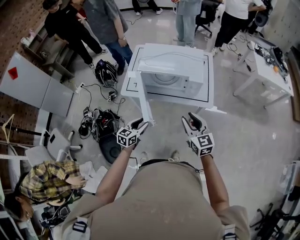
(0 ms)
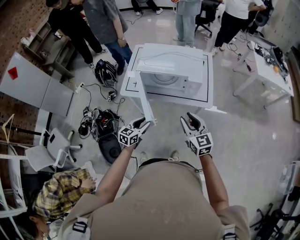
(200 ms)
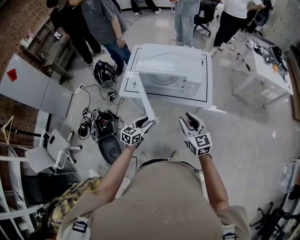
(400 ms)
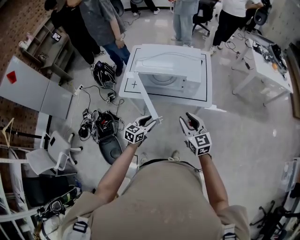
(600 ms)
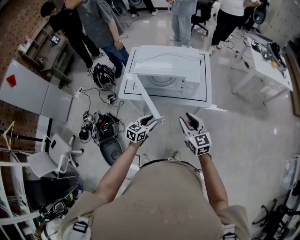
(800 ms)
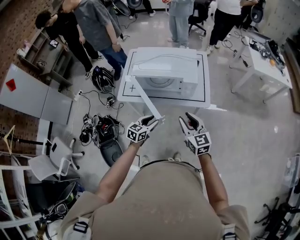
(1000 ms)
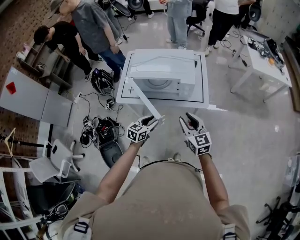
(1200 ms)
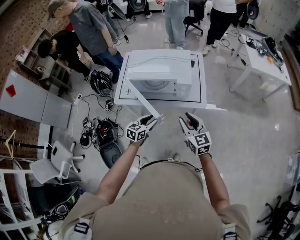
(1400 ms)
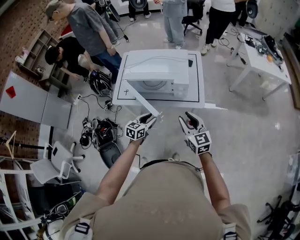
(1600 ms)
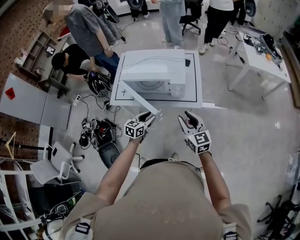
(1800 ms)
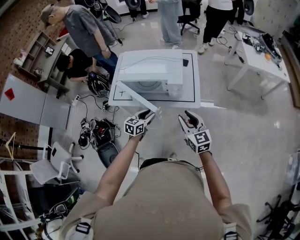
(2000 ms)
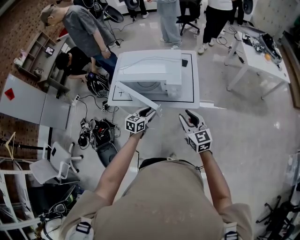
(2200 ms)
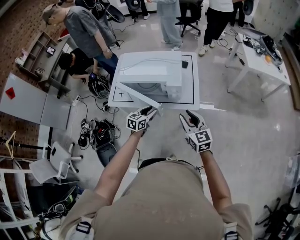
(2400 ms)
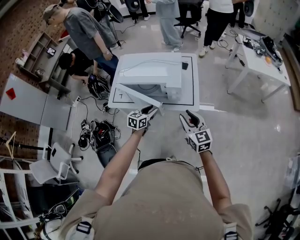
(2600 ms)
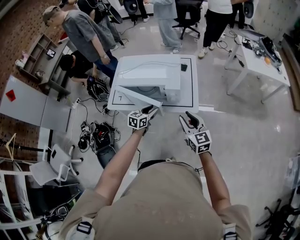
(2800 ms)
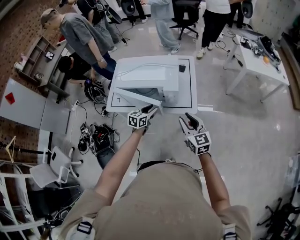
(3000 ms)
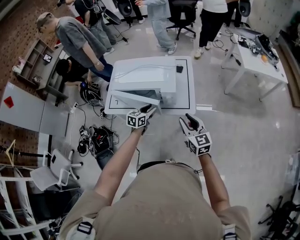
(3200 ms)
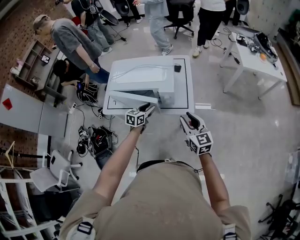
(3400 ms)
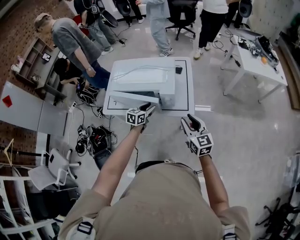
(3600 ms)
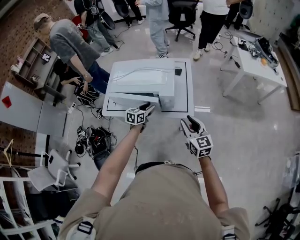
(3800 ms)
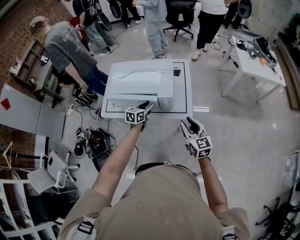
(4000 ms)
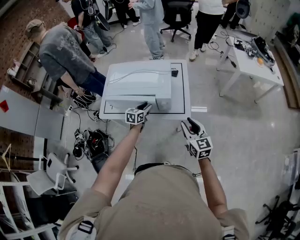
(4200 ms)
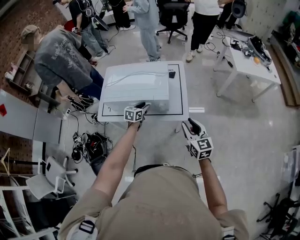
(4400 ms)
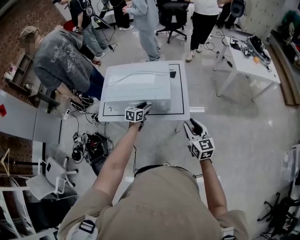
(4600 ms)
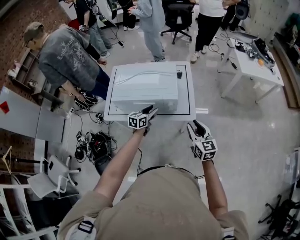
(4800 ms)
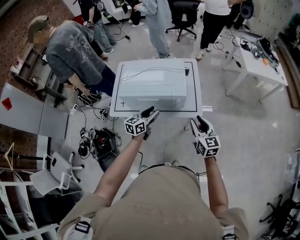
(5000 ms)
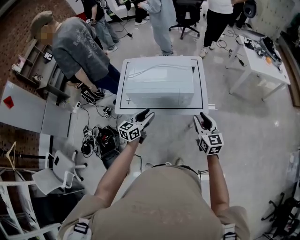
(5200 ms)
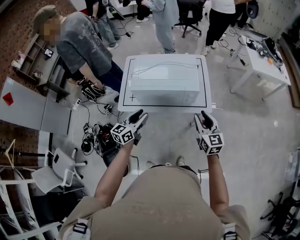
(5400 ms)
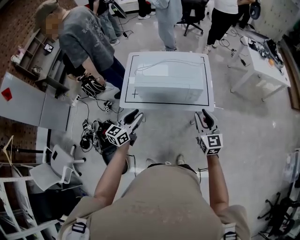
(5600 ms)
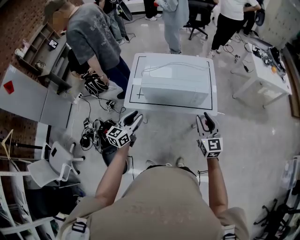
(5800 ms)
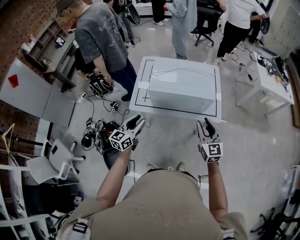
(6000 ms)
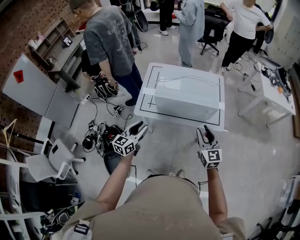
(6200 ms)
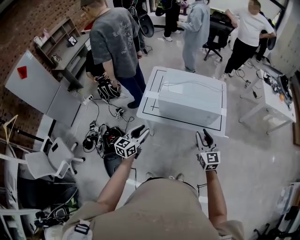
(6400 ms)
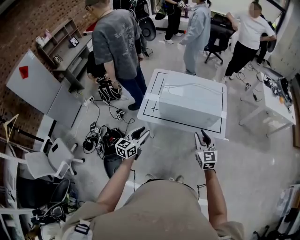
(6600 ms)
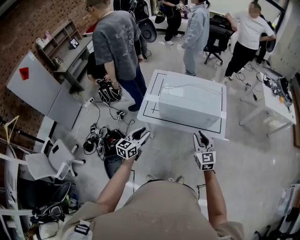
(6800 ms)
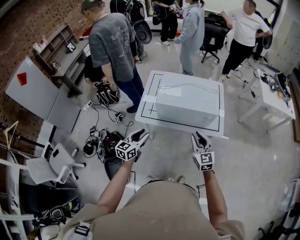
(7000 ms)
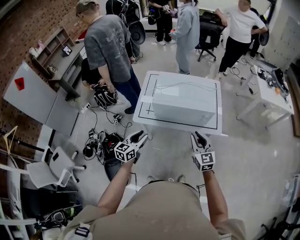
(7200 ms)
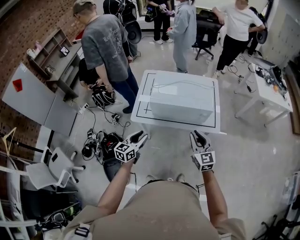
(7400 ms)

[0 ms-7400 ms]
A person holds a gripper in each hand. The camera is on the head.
0 ms to 1400 ms: The left gripper moves to the right and forward, roughly 10 cm.
1400 ms to 3000 ms: The left gripper is displaced forward and to the right by some 15 cm; the right gripper goes about 10 cm to the right and forward.
3000 ms to 4400 ms: The right gripper heads to the right, covering some 5 cm, while the left gripper shifts roughly 10 cm forward.
4400 ms to 6000 ms: The left gripper goes some 40 cm to the left, backward and upward, and changes its angle by roughly 30 degrees, while the right gripper heads to the left, covering roughly 20 cm.

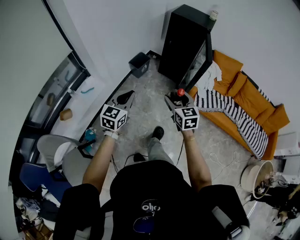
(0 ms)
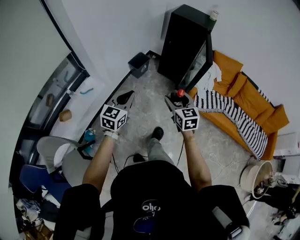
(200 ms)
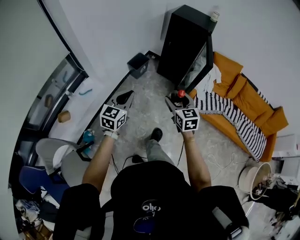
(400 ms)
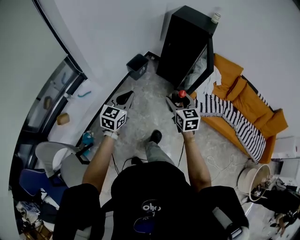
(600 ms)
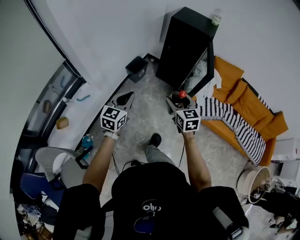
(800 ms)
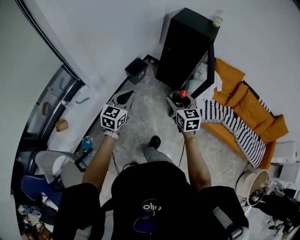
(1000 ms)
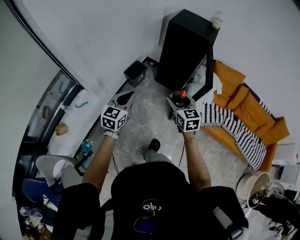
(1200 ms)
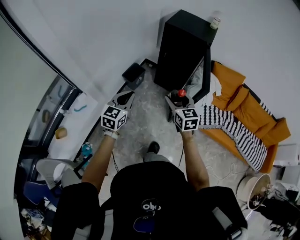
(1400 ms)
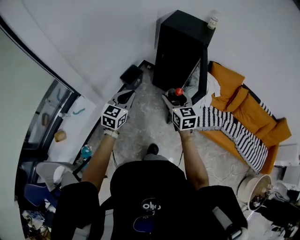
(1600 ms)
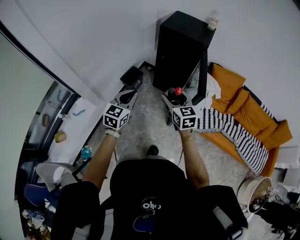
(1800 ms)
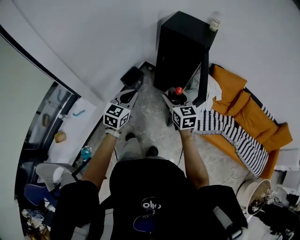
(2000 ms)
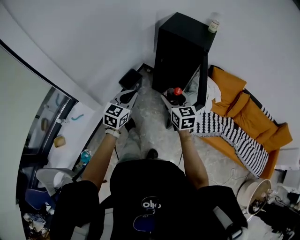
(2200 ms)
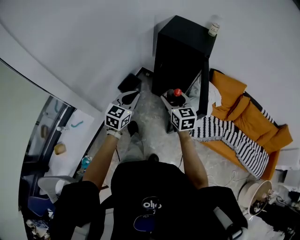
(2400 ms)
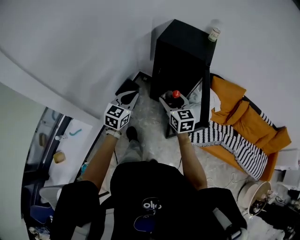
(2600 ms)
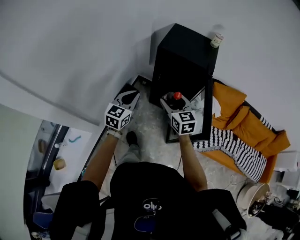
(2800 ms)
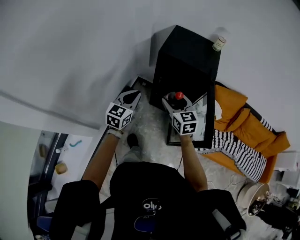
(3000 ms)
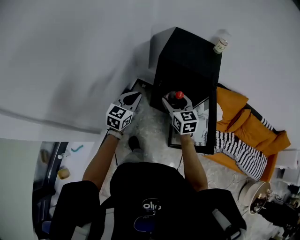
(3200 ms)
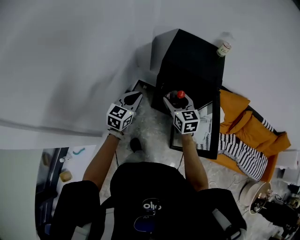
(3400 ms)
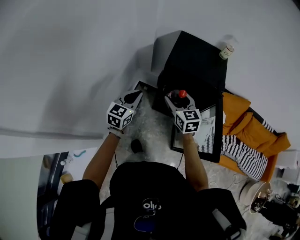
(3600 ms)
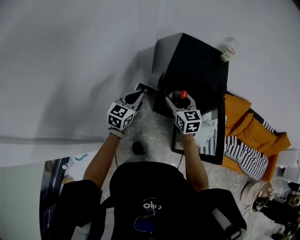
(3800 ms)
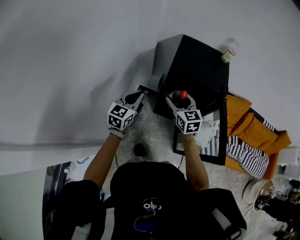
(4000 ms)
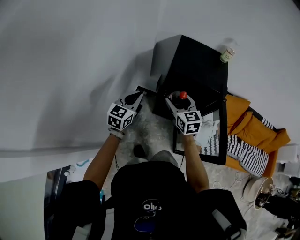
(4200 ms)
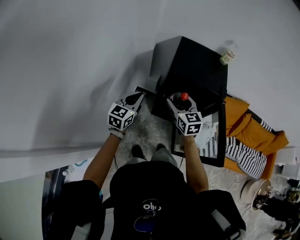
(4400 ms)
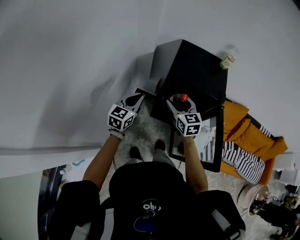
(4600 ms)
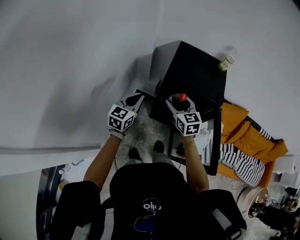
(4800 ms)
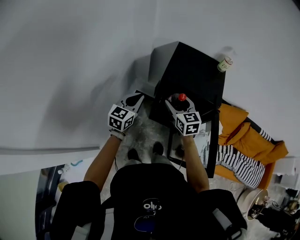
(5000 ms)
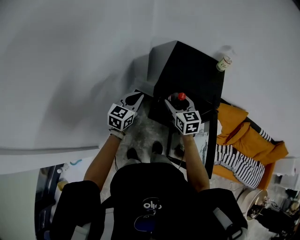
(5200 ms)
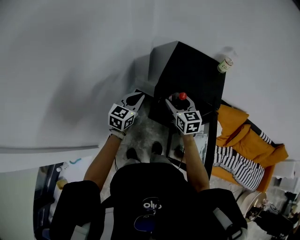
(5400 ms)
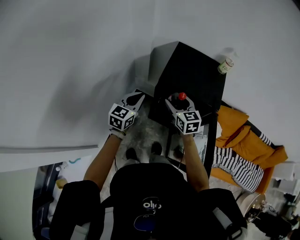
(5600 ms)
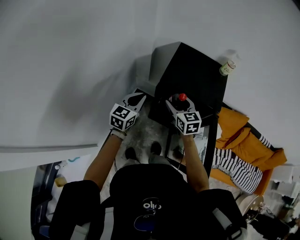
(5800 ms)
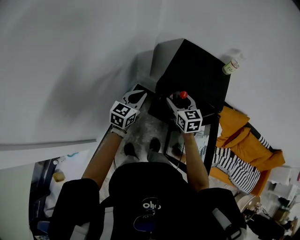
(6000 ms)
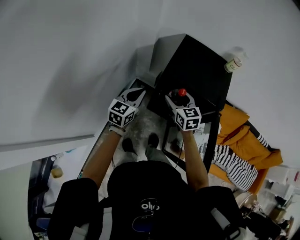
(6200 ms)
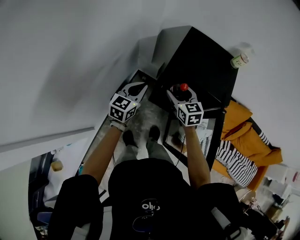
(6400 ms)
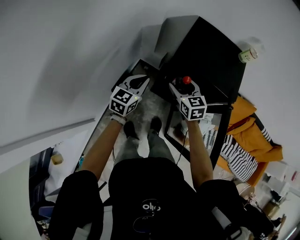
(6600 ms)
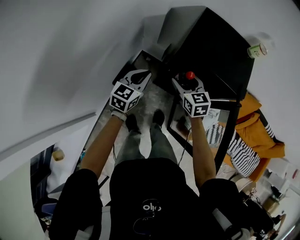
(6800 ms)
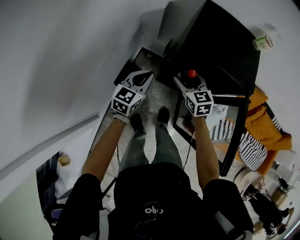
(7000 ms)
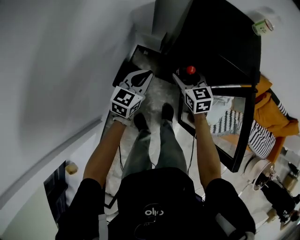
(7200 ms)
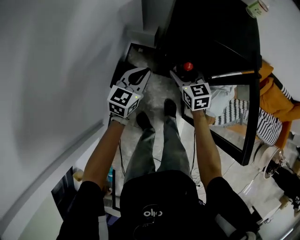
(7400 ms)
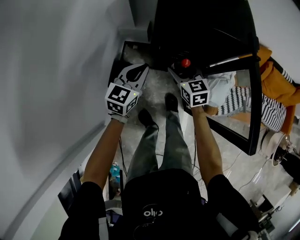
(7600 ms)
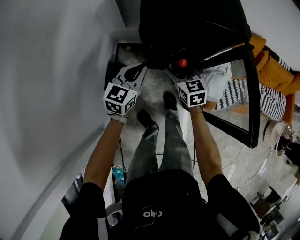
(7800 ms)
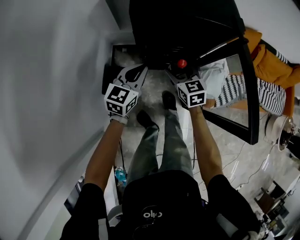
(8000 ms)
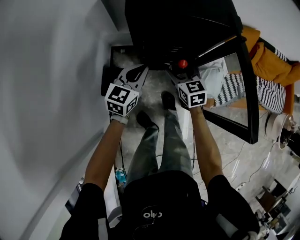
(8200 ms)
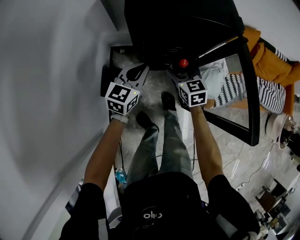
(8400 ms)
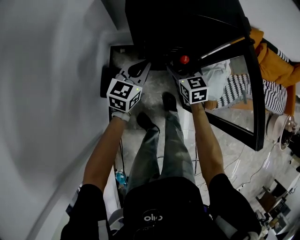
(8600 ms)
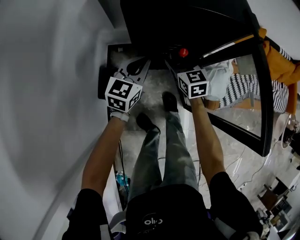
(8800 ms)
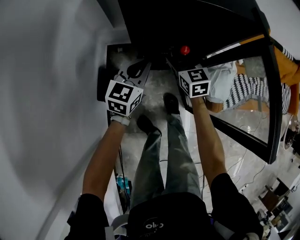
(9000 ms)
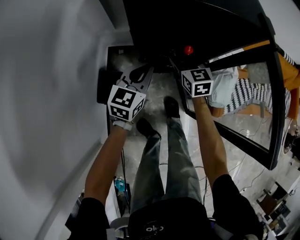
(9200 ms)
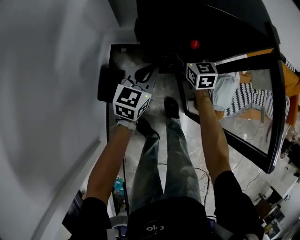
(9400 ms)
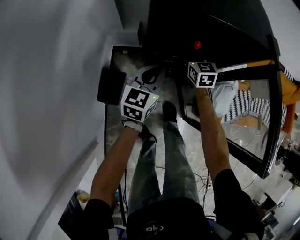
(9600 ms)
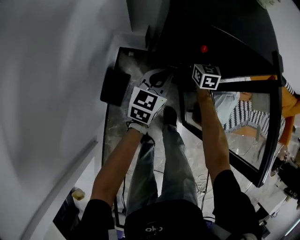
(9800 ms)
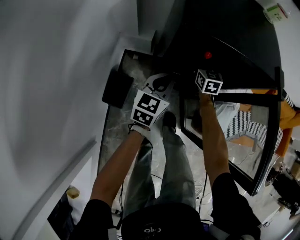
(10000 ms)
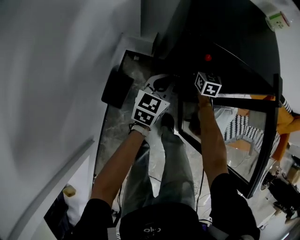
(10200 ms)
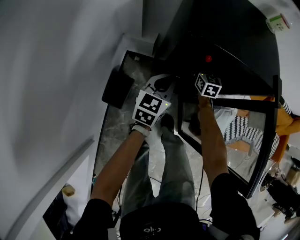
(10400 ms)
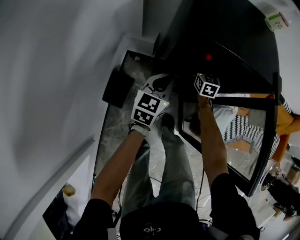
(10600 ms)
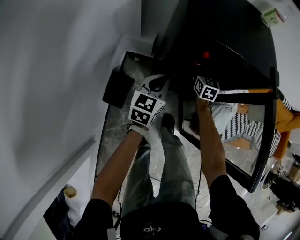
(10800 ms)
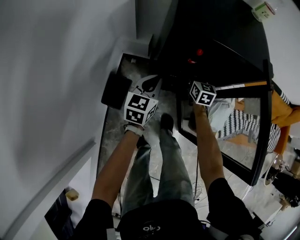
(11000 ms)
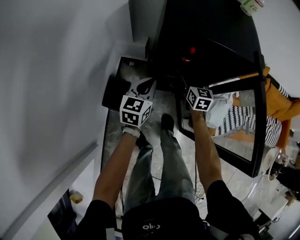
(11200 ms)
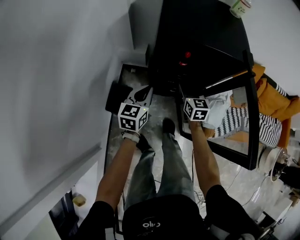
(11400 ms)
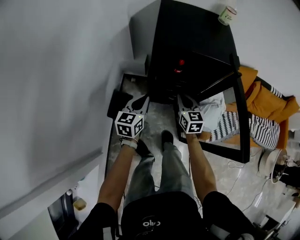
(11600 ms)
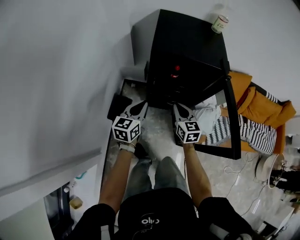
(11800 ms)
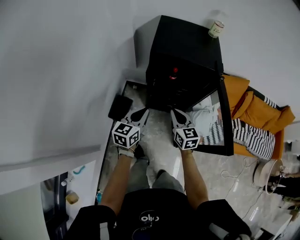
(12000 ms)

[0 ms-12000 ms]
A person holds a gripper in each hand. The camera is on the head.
0 ms to 1600 ms: Both grippers move forward, some 25 cm.
1600 ms to 3000 ms: The two grippers go approximately 30 cm forward.
3000 ms to 4400 ms: Both grippers move forward and to the left, about 15 cm.
4400 ms to 6000 ms: The left gripper travels to the right and forward by roughly 10 cm, while the right gripper is displaced forward and to the right by some 10 cm.
6000 ms to 7600 ms: The two grippers go some 20 cm downward.
7600 ms to 9000 ms: The left gripper goes approximately 15 cm downward, to the right and forward. Meanwhile the right gripper shifts some 10 cm downward and forward.
9000 ms to 10400 ms: The right gripper heads forward, covering roughly 15 cm.
10400 ms to 12000 ms: The right gripper travels backward and upward by about 40 cm, and closes. Meanwhile the left gripper shifts approximately 25 cm backward and upward.

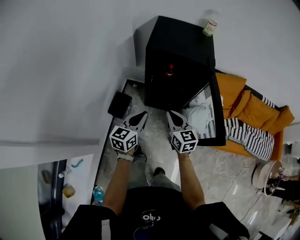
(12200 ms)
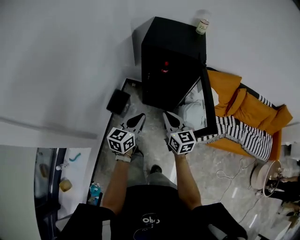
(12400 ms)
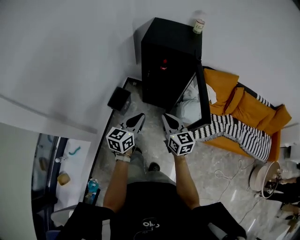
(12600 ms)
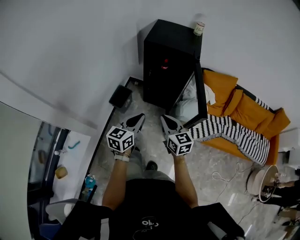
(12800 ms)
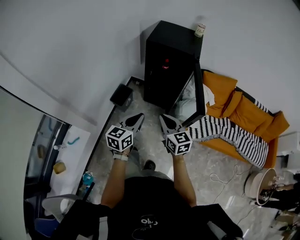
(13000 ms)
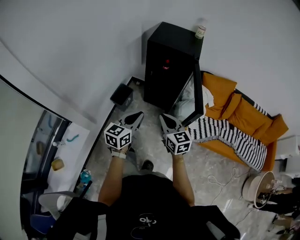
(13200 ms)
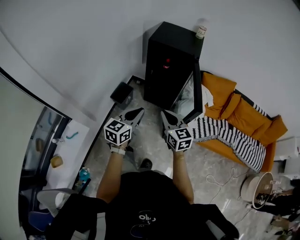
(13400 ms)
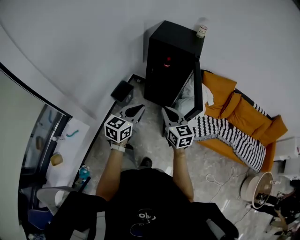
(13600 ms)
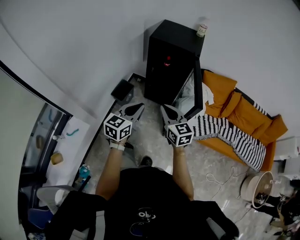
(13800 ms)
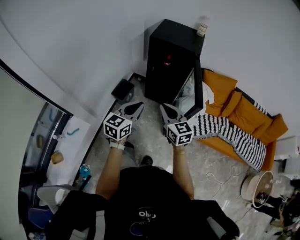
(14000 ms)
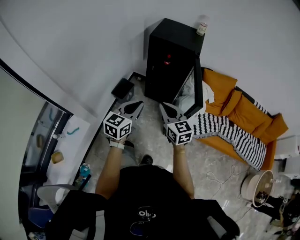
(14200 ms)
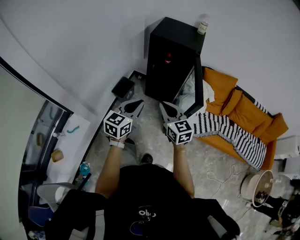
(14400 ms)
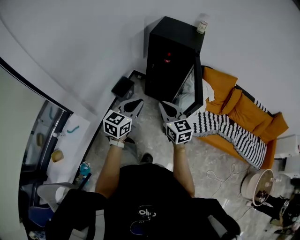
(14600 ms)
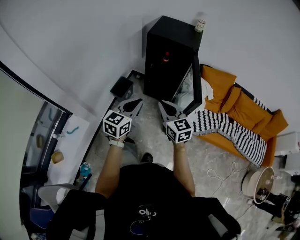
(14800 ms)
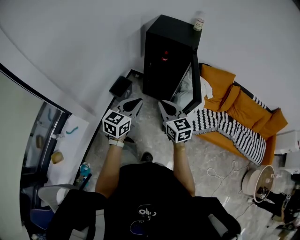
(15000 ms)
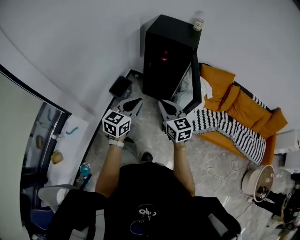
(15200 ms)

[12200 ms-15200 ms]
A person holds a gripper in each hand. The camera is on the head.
12200 ms to 13800 ms: Both grippers travel together backward and upward, roughly 25 cm.
13800 ms to 15200 ms: Both grippers stay put.

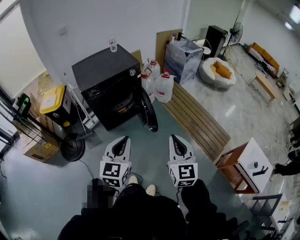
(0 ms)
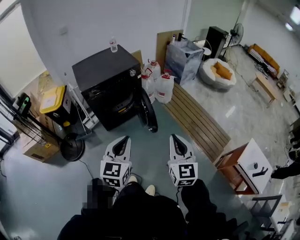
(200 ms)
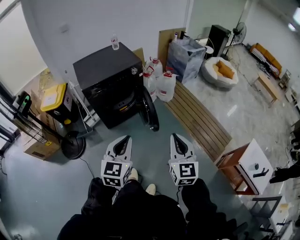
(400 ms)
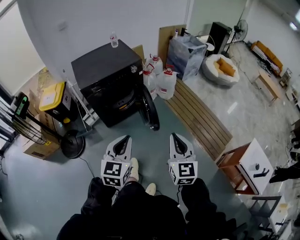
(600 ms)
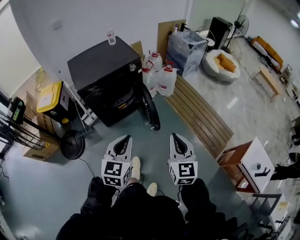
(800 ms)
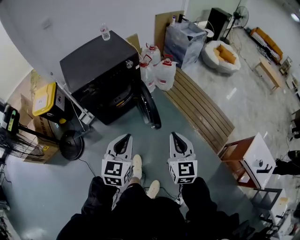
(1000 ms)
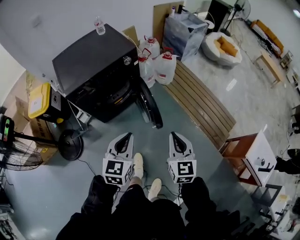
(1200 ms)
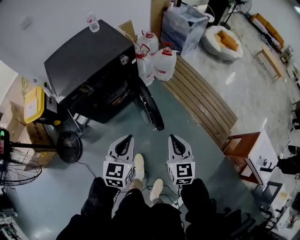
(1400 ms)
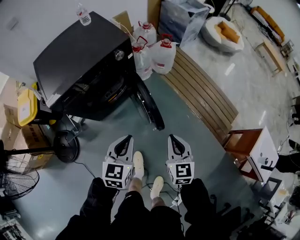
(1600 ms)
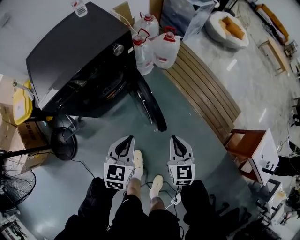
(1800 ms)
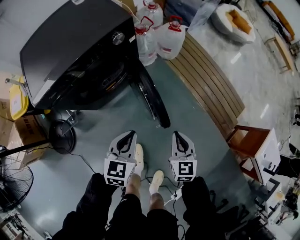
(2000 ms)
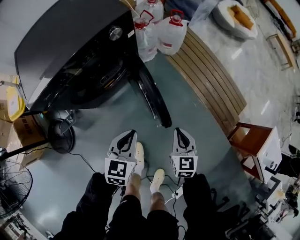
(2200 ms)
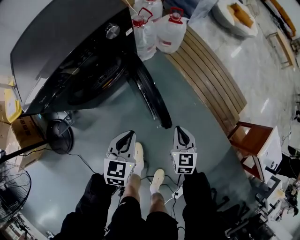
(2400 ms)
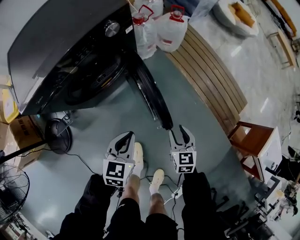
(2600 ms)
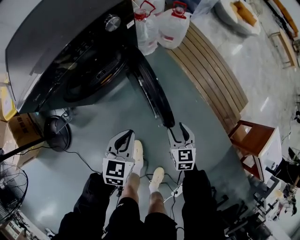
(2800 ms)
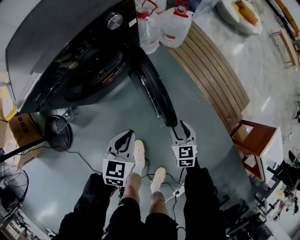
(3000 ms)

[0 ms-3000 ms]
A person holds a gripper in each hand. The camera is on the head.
0 ms to 1600 ms: Both grippers travel together forward and downward, some 40 cm. The right gripper changes its angle by some 20 degrees.
1600 ms to 3000 ms: The two grippers go about 25 cm downward. The right gripper opens its fingers.
